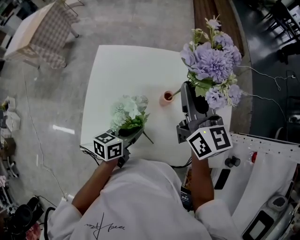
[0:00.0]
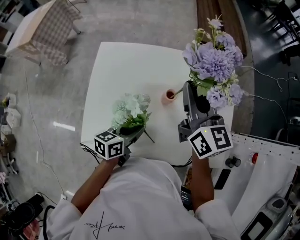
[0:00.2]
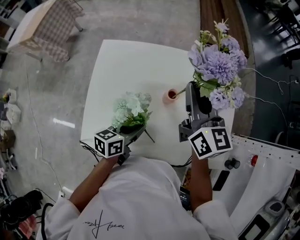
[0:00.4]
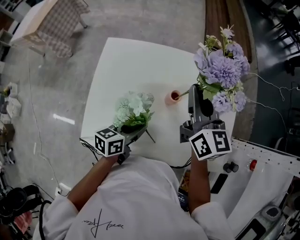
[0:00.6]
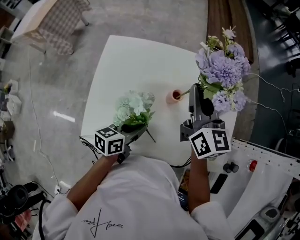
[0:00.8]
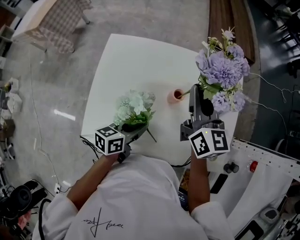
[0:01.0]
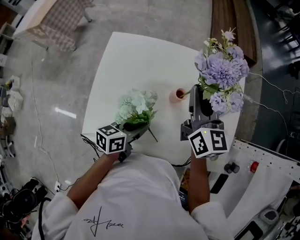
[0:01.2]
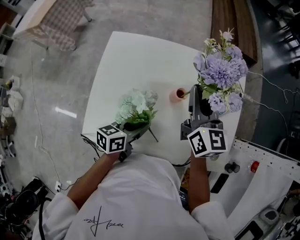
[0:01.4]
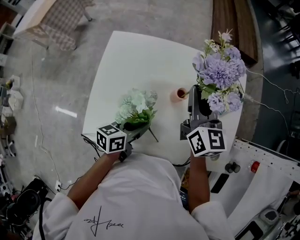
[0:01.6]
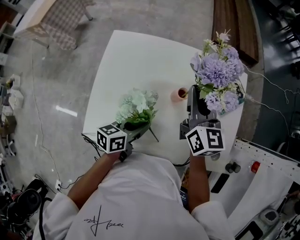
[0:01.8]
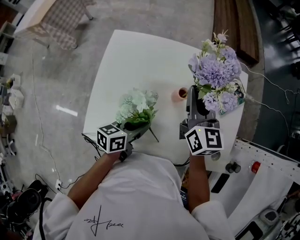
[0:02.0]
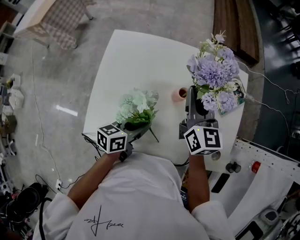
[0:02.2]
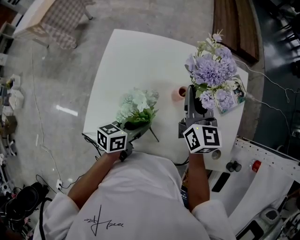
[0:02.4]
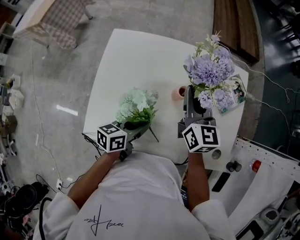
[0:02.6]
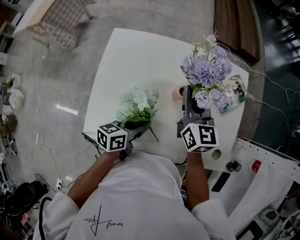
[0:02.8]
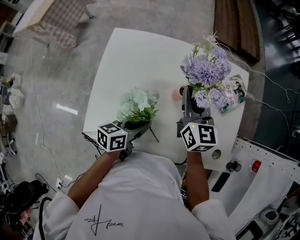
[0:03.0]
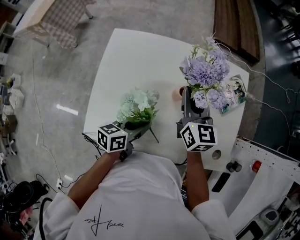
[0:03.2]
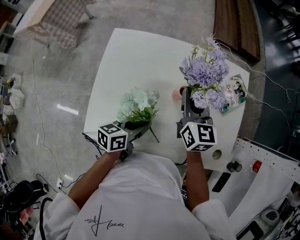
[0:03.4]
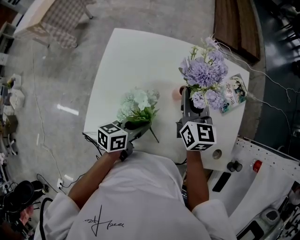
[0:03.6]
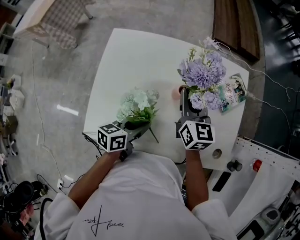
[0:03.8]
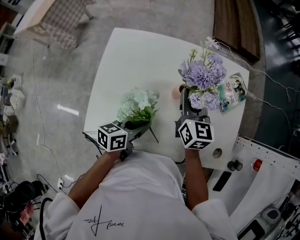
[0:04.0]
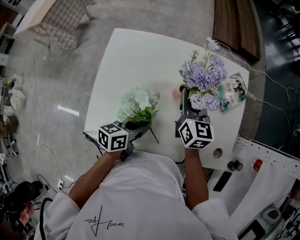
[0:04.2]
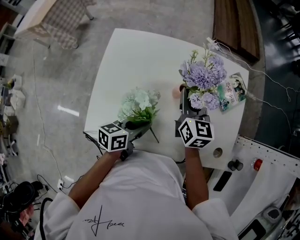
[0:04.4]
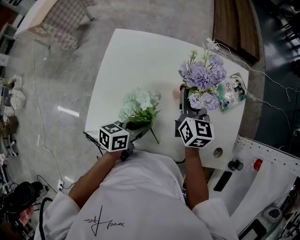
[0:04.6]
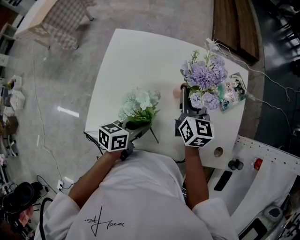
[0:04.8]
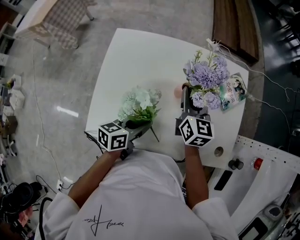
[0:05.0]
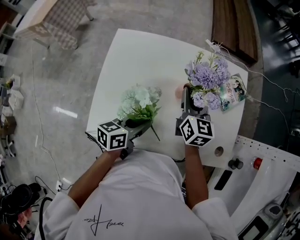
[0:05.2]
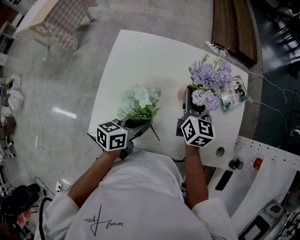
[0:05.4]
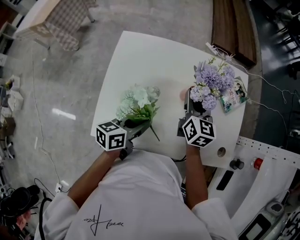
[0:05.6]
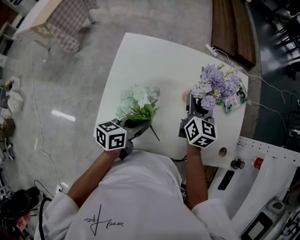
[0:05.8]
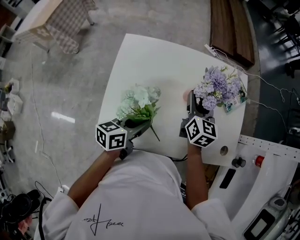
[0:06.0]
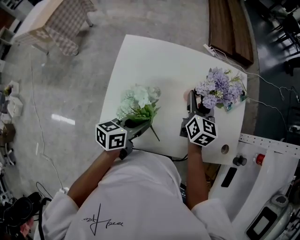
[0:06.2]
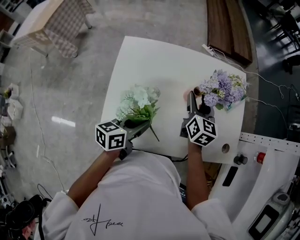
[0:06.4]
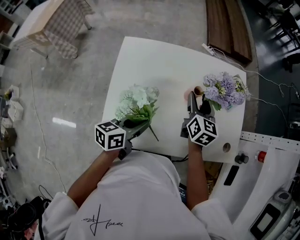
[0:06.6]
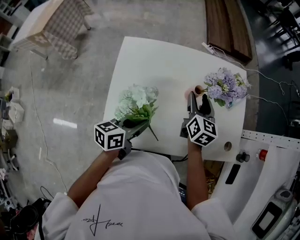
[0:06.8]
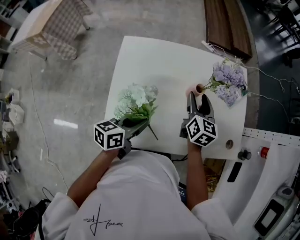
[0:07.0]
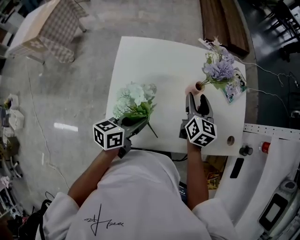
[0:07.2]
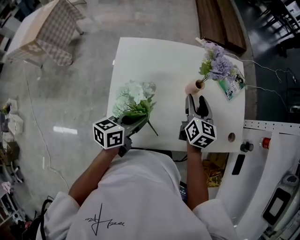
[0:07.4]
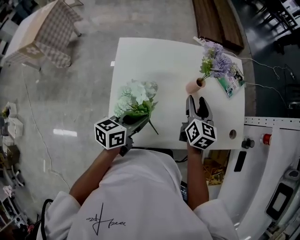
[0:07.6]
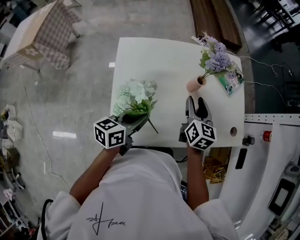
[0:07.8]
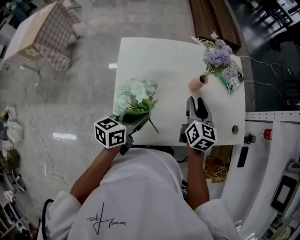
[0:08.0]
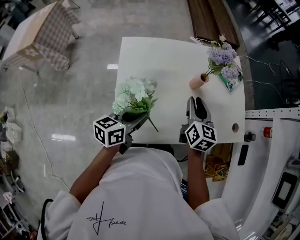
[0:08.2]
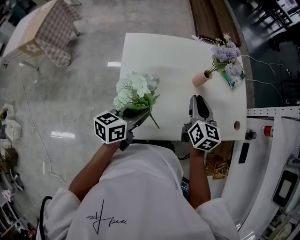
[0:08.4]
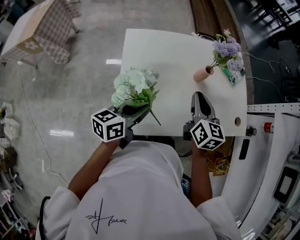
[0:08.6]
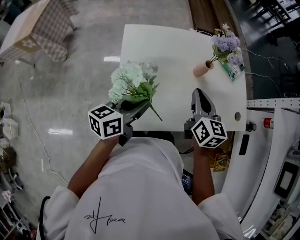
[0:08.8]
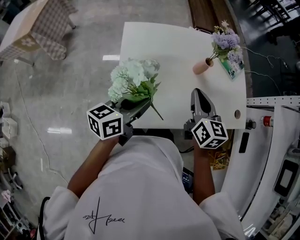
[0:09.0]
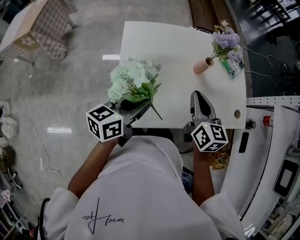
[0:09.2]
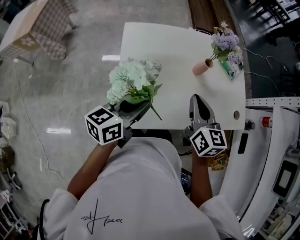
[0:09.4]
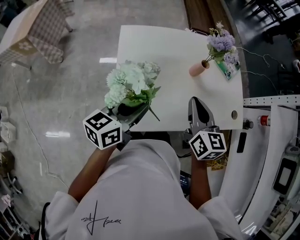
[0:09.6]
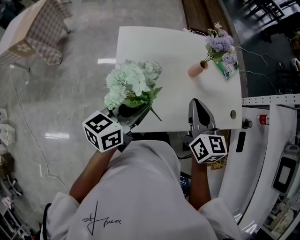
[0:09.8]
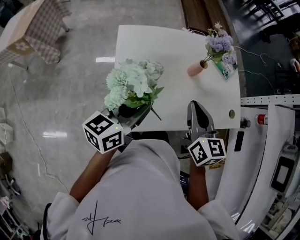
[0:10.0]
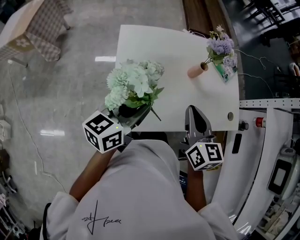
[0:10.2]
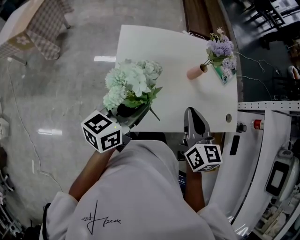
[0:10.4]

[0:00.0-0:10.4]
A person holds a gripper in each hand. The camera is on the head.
0:00.0 to 0:01.4: The right gripper travels downward by roughly 5 cm.
0:01.4 to 0:03.0: The right gripper heads downward, covering roughly 5 cm.
0:03.0 to 0:04.4: The grippers move only a little.
0:04.4 to 0:06.0: The right gripper is displaced to the right by some 5 cm, and opens up.
0:06.0 to 0:07.4: The right gripper moves roughly 5 cm.
0:07.4 to 0:09.0: The right gripper is displaced backward by approximately 5 cm, and closes.
0:09.0 to 0:10.4: The right gripper goes approximately 5 cm backward.

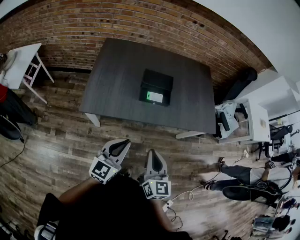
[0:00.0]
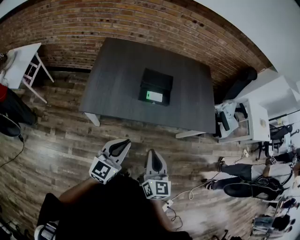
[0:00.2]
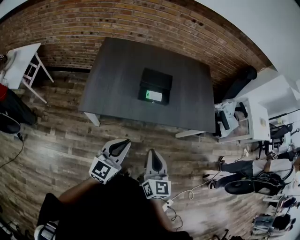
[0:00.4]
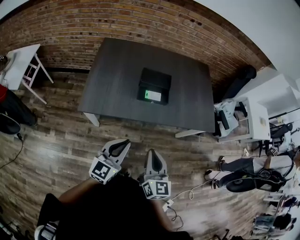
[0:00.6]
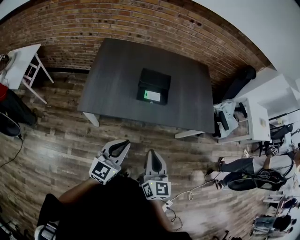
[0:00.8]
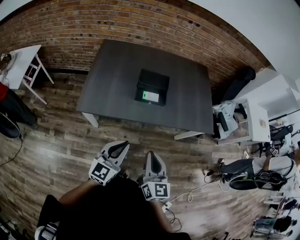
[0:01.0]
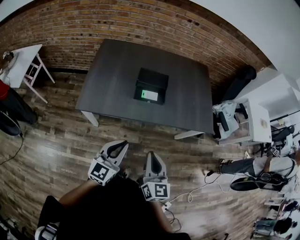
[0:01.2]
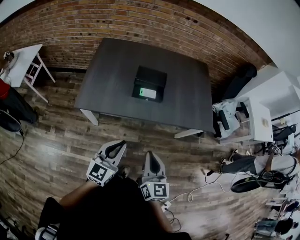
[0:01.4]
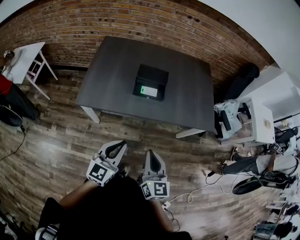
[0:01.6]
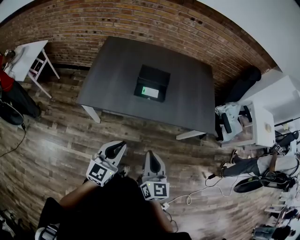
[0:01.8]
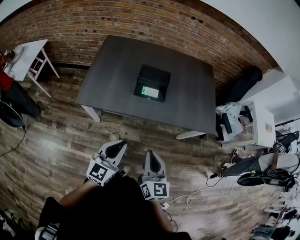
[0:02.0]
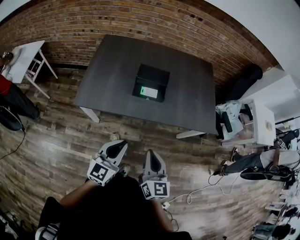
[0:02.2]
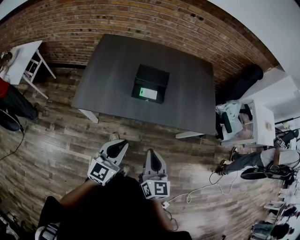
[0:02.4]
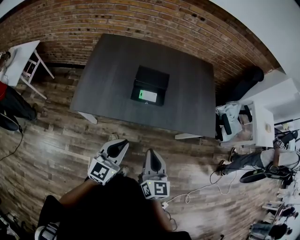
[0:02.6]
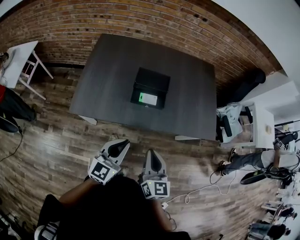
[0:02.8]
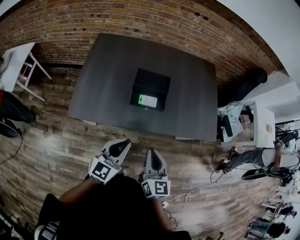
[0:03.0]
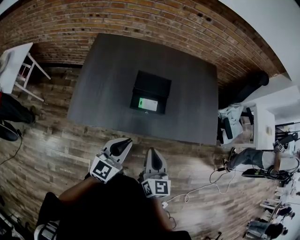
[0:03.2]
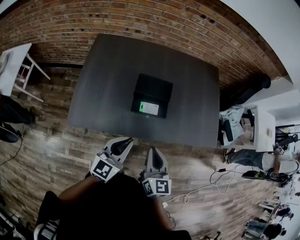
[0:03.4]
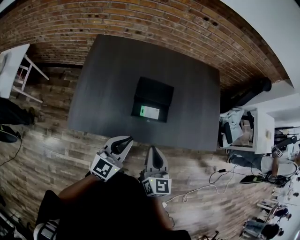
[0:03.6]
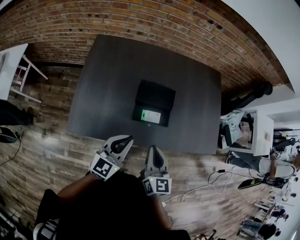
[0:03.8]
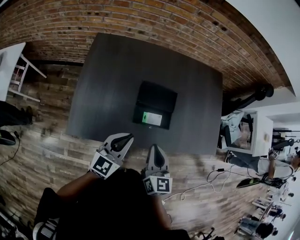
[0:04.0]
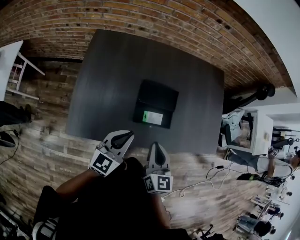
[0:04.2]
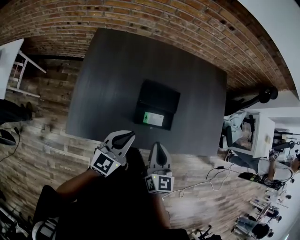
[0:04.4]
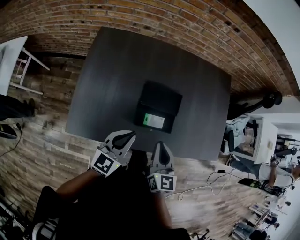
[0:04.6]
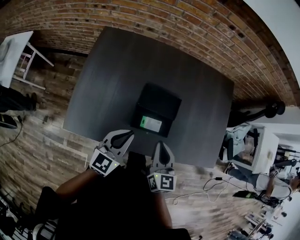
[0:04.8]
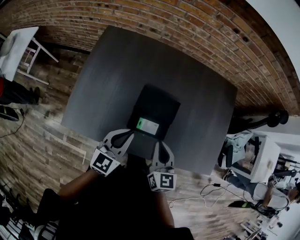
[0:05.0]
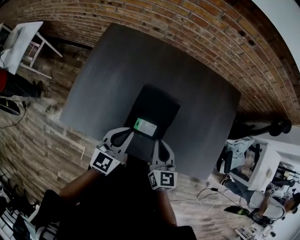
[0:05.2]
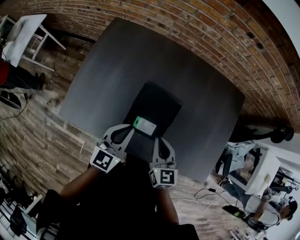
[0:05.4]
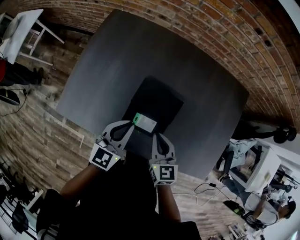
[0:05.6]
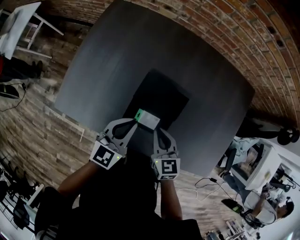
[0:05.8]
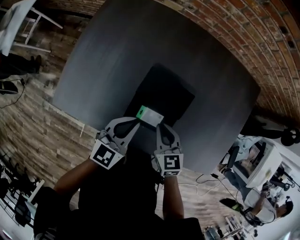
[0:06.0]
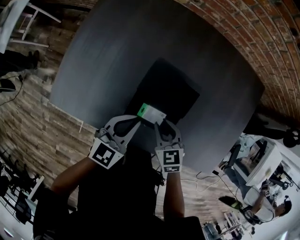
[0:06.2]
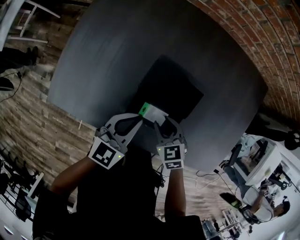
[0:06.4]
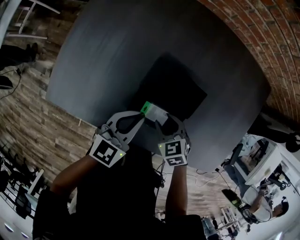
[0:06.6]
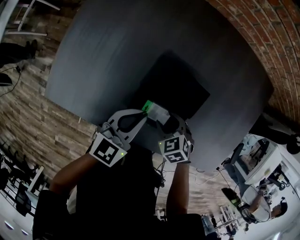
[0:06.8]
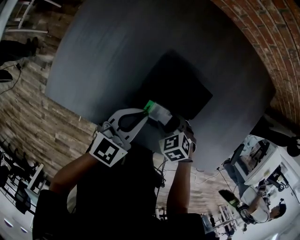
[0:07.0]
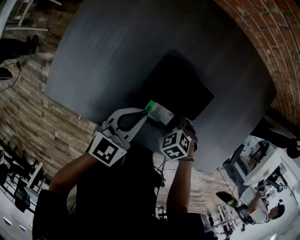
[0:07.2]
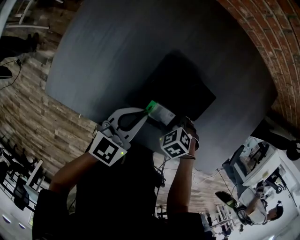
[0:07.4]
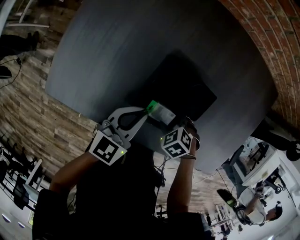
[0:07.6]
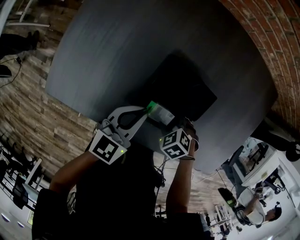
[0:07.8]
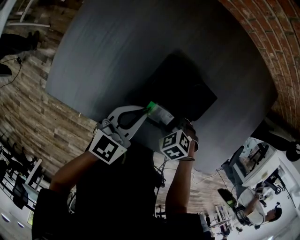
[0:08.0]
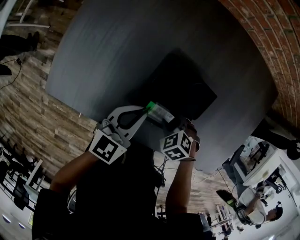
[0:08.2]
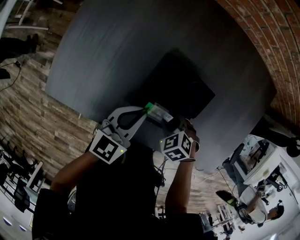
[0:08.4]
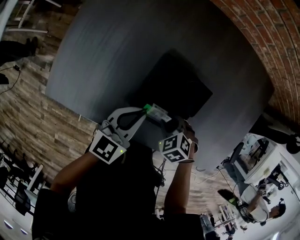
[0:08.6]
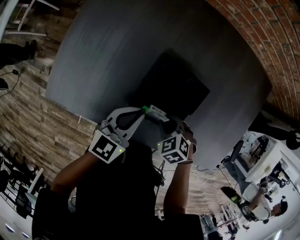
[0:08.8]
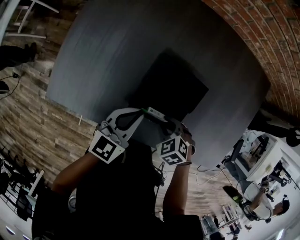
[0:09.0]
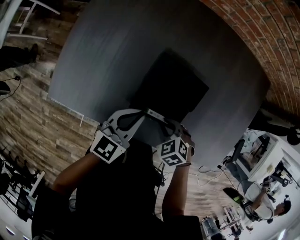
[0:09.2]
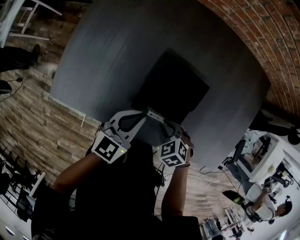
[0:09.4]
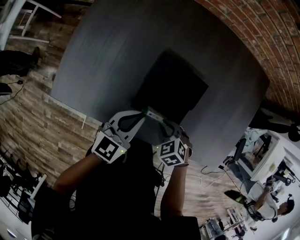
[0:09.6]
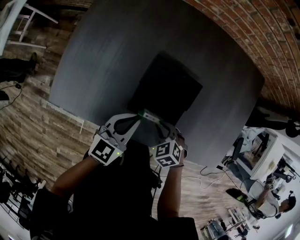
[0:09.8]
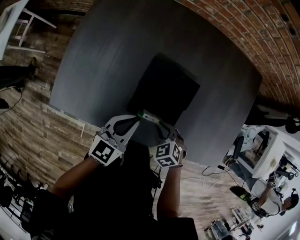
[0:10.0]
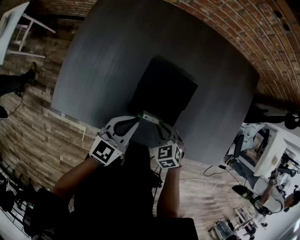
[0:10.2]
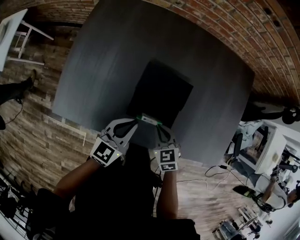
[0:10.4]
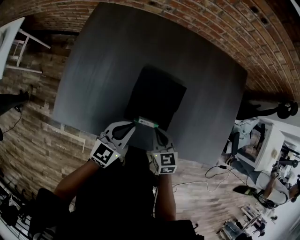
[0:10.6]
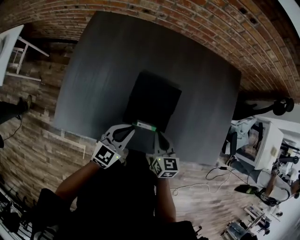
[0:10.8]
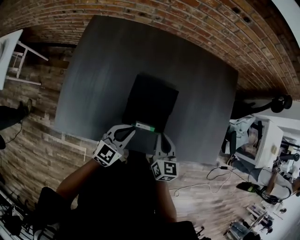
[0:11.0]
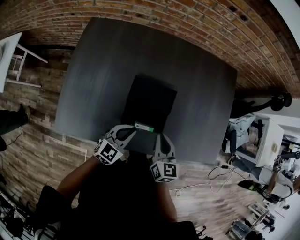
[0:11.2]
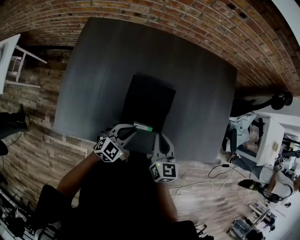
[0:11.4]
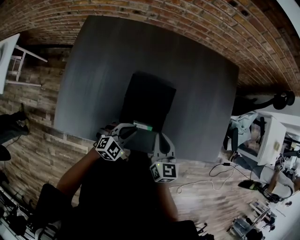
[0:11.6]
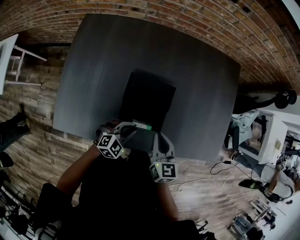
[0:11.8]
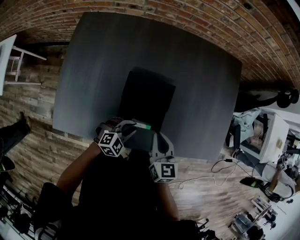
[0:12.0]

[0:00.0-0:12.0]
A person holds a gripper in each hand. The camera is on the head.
0:00.0 to 0:01.6: Both grippers move to the right, about 10 cm.
0:01.6 to 0:03.0: Both grippers travel together forward, some 15 cm.
0:03.0 to 0:04.4: The grippers both shift forward and to the left by roughly 20 cm.
0:04.4 to 0:06.0: The right gripper is displaced downward and forward by approximately 20 cm, and changes its angle by some 40 degrees, while the left gripper goes some 15 cm downward, forward and to the right.
0:06.0 to 0:07.6: The right gripper heads downward, covering approximately 15 cm, tips its fingers downward by about 40 degrees, and opens up. Meanwhile the left gripper is displaced downward by about 10 cm.
0:07.6 to 0:09.0: The right gripper shifts roughly 5 cm upward, and closes its fingers.
0:09.0 to 0:10.4: The right gripper shifts about 5 cm upward, and swivels some 40 degrees.
0:10.4 to 0:12.0: The right gripper heads upward, covering some 10 cm, and swivels some 40 degrees, while the left gripper shifts approximately 15 cm downward and to the right, and swivels about 50 degrees.

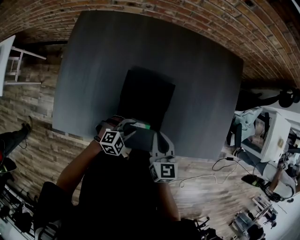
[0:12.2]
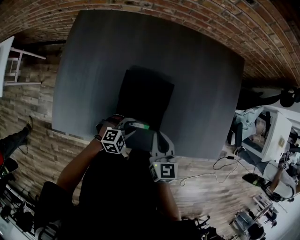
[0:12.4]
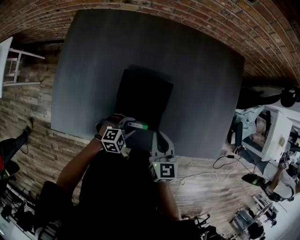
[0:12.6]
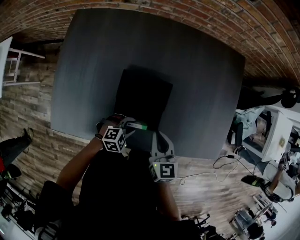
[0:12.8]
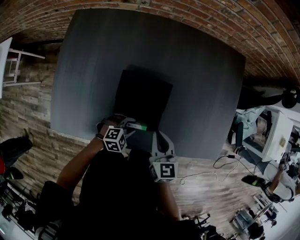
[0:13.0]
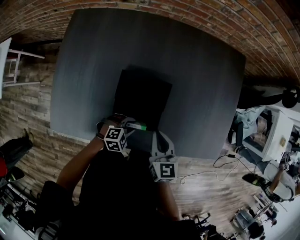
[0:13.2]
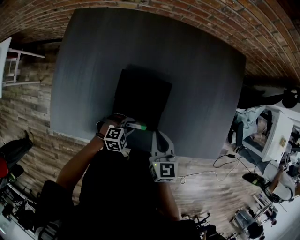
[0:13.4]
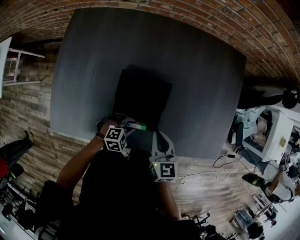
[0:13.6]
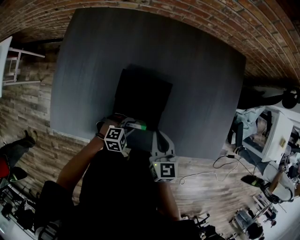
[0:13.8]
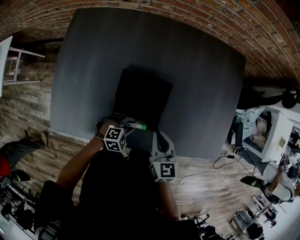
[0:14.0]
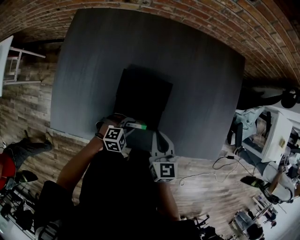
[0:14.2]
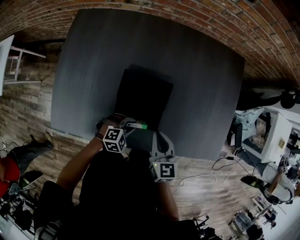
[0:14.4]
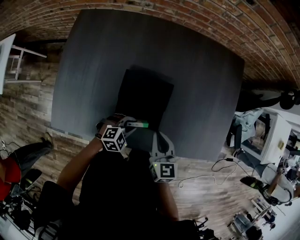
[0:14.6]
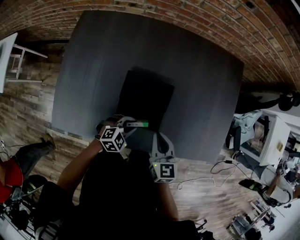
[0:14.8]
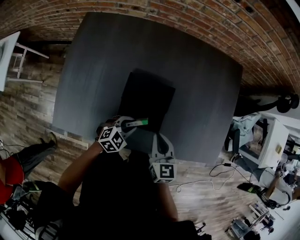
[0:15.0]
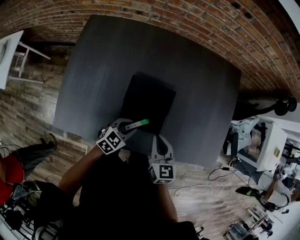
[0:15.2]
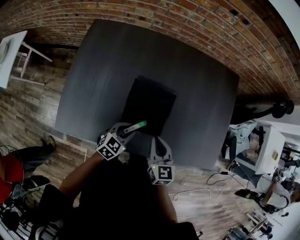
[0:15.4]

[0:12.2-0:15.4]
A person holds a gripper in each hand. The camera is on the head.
0:12.2 to 0:13.8: The grippers move only a little.
0:13.8 to 0:15.4: The right gripper ends up about 5 cm from where it was. Meanwhile the left gripper is displaced upward and to the left by roughly 10 cm, and turns by some 40 degrees.
